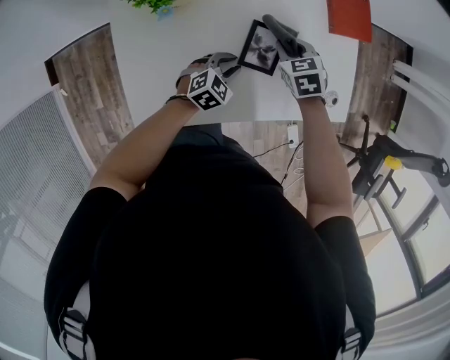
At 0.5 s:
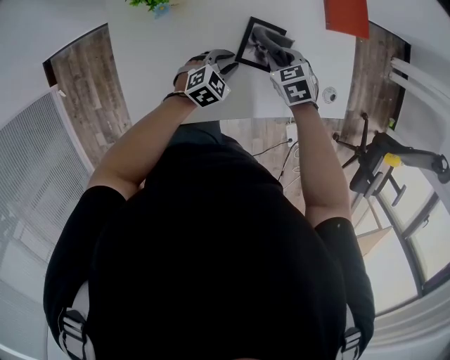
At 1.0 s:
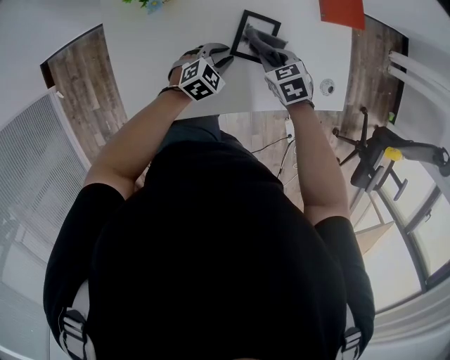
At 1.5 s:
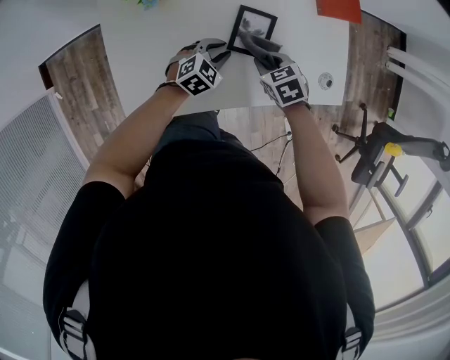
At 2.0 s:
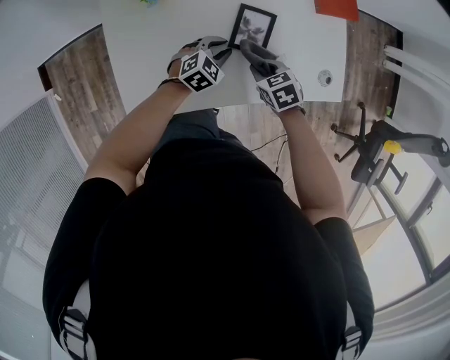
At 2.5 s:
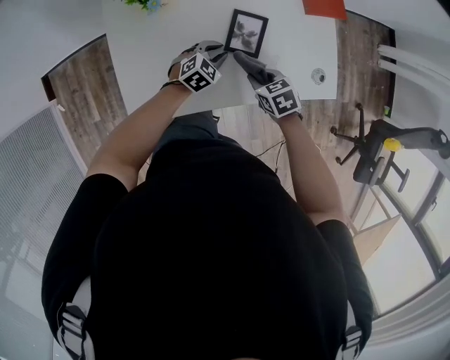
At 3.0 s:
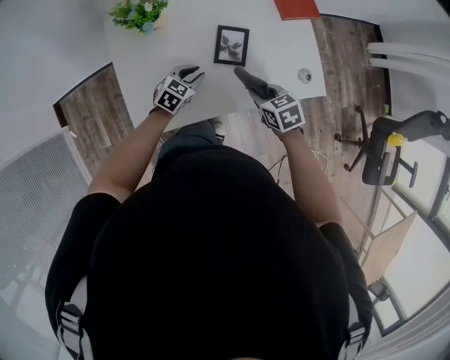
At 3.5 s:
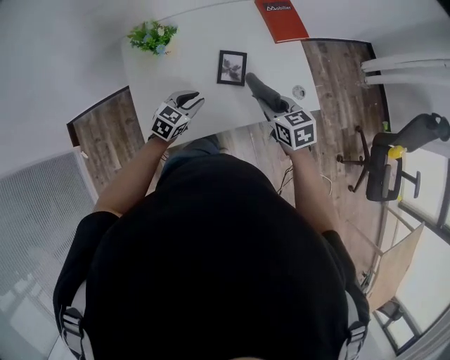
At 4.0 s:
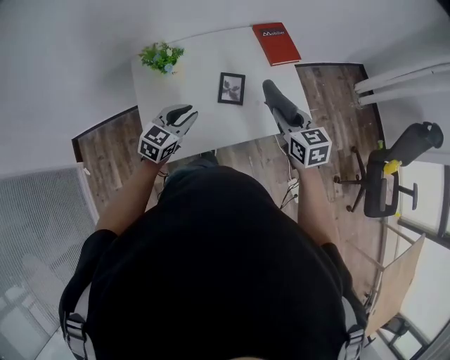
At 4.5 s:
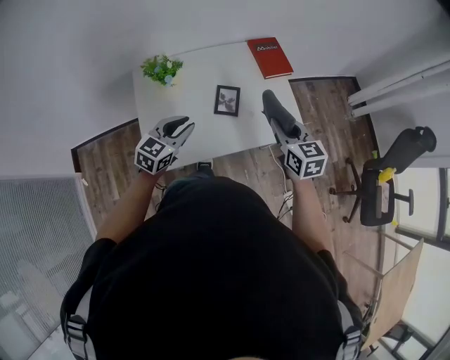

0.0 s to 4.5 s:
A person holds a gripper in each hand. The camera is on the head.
0.0 to 2.0 s: The right gripper travels backward by about 15 cm.
2.0 to 4.5 s: Both grippers move upward, about 30 cm. The left gripper changes its angle by approximately 30 degrees, while the right gripper tips its fingers upward by some 40 degrees.

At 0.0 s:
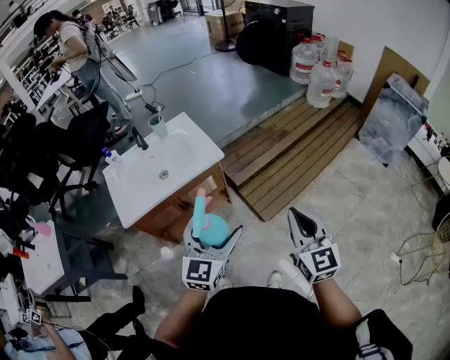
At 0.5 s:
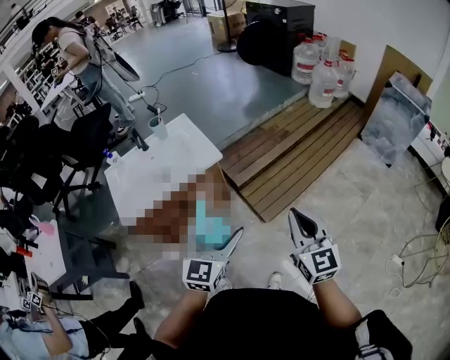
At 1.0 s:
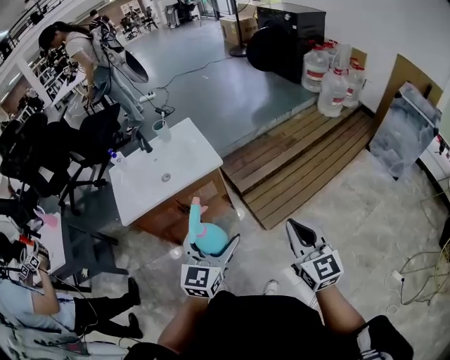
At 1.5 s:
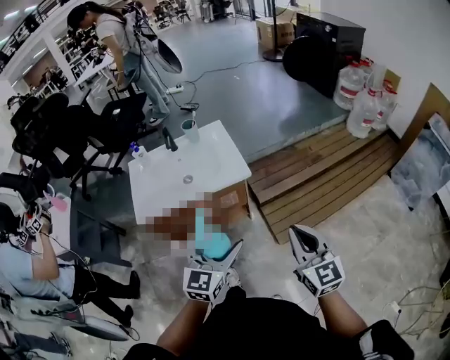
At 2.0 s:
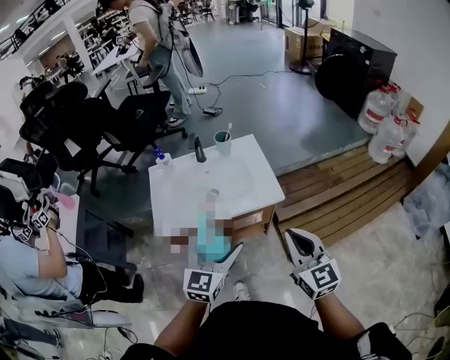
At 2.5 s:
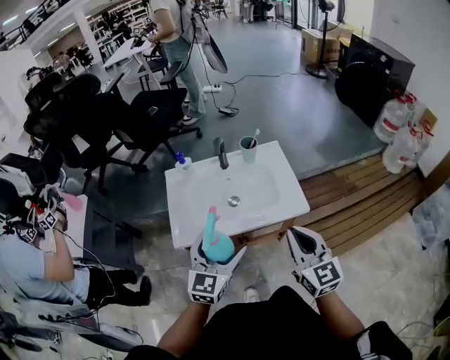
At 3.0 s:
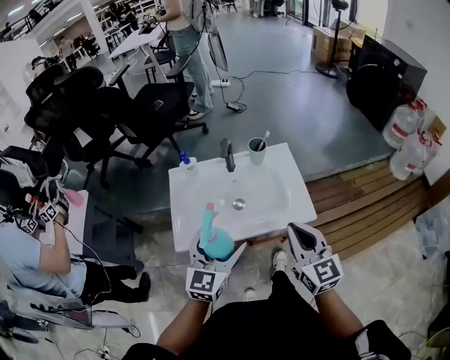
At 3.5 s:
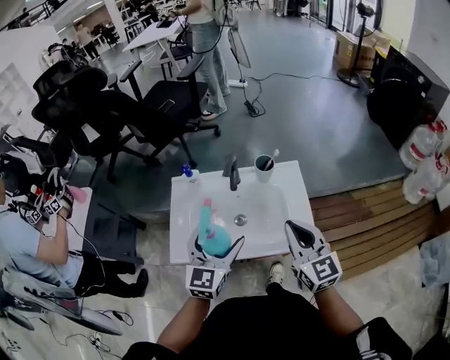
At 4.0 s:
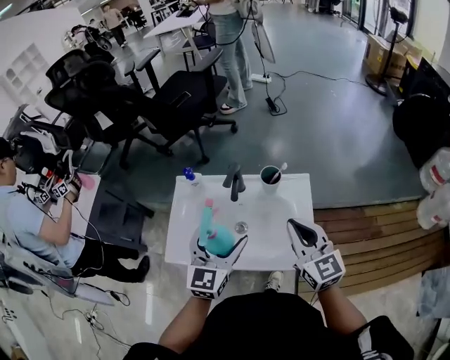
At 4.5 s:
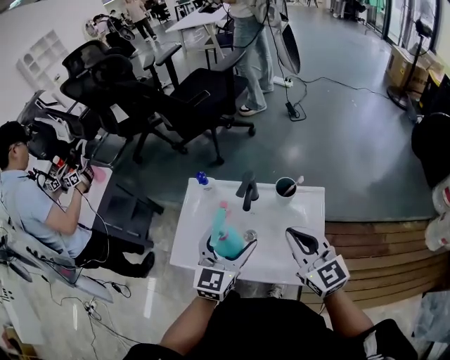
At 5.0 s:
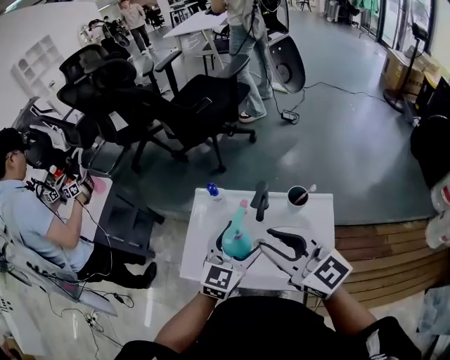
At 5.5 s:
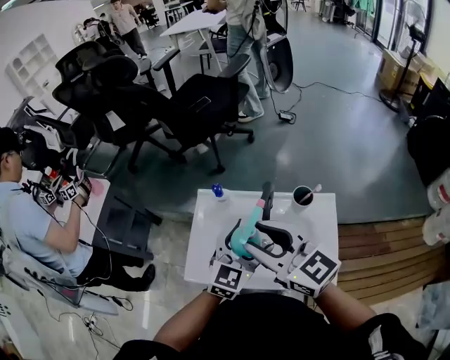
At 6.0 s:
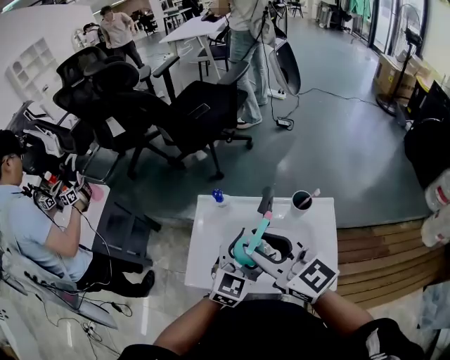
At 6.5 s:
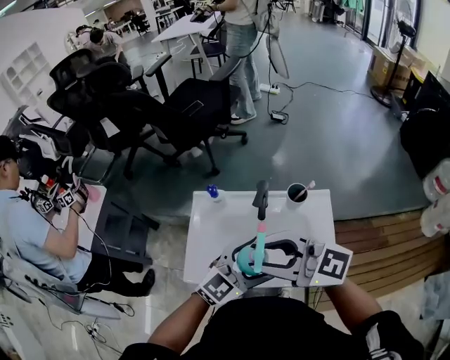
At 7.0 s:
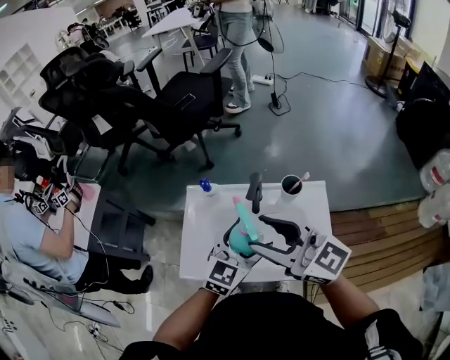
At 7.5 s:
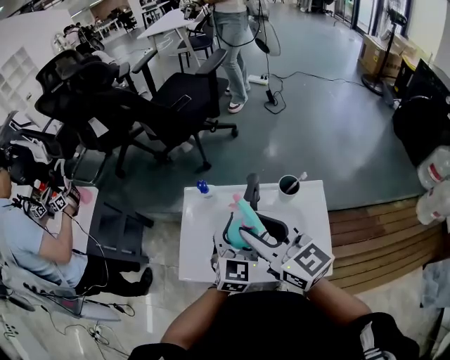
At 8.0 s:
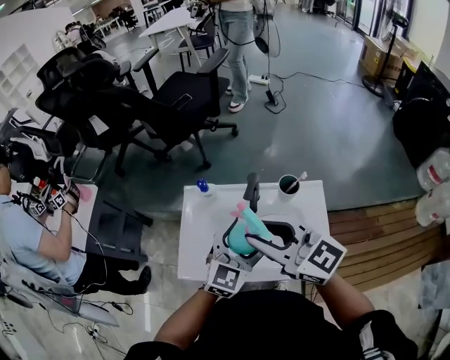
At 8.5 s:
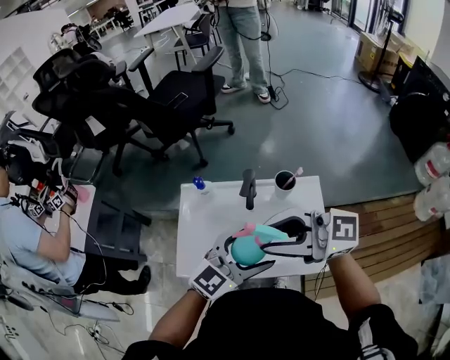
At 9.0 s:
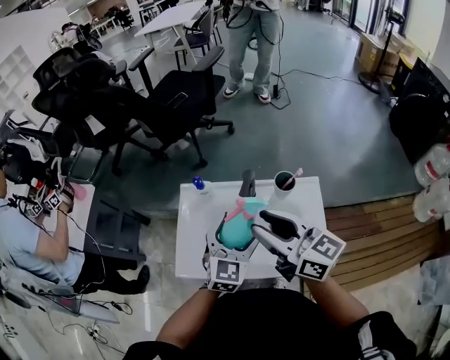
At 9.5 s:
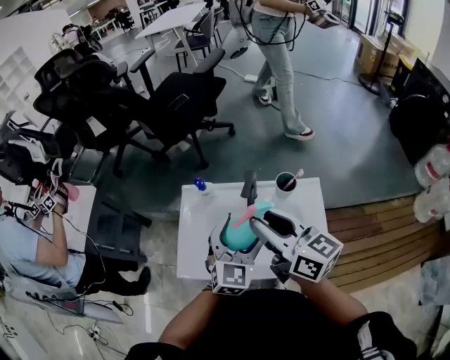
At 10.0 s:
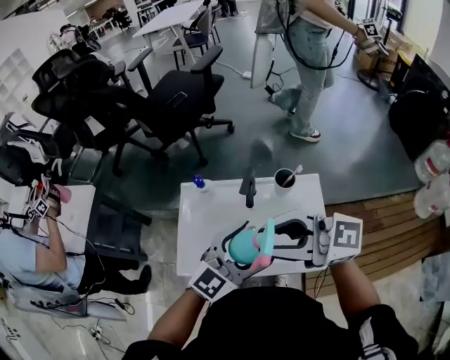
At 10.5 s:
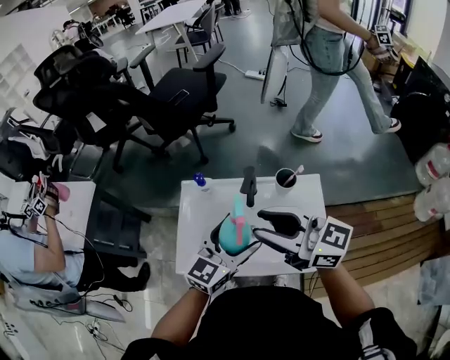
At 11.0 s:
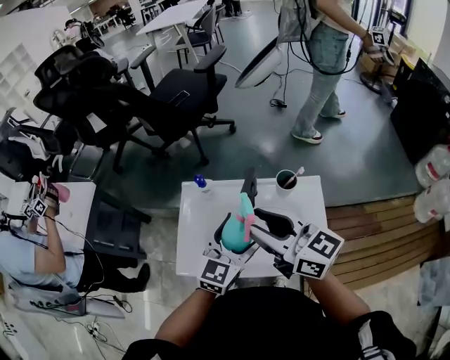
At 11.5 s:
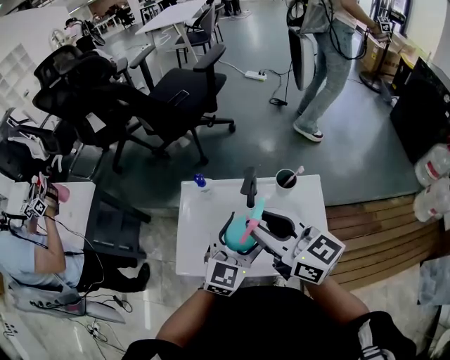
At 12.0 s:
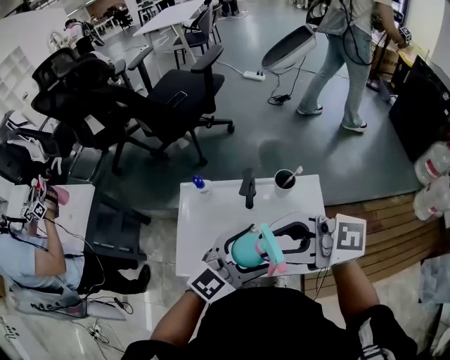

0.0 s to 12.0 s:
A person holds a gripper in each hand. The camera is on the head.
0.0 to 2.0 s: Both grippers travel together to the left and forward, some 20 cm. The right gripper rotates roughly 30 degrees.
2.0 to 4.0 s: The two grippers go approximately 30 cm forward. The left gripper turns by approximately 20 degrees, while the right gripper changes its angle by roughly 20 degrees.
4.0 to 6.0 s: The right gripper travels to the left and upward by roughly 25 cm, swivels approximately 30 degrees, and opens.
8.0 to 10.0 s: The right gripper ends up roughly 5 cm from where it was, and rotates approximately 20 degrees. Meanwhile the left gripper ends up approximately 10 cm from where it was, and rotates approximately 20 degrees.

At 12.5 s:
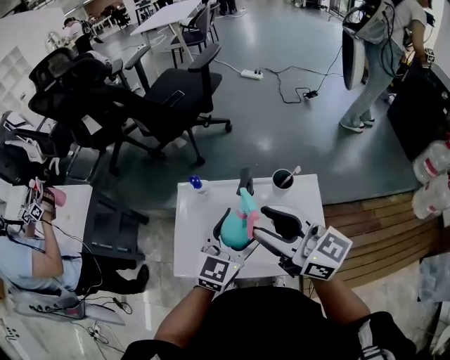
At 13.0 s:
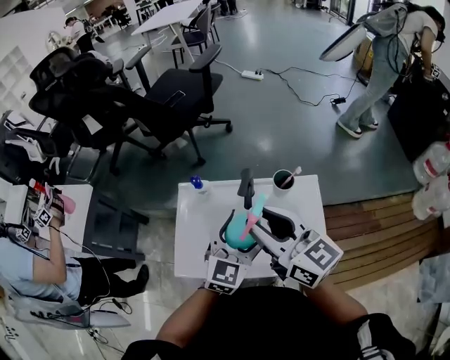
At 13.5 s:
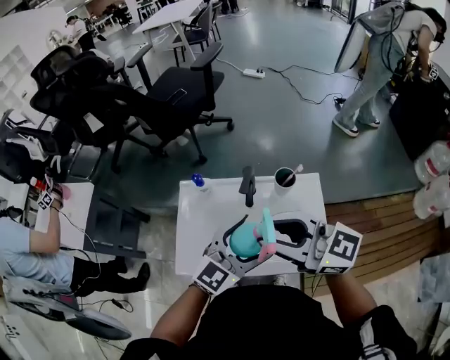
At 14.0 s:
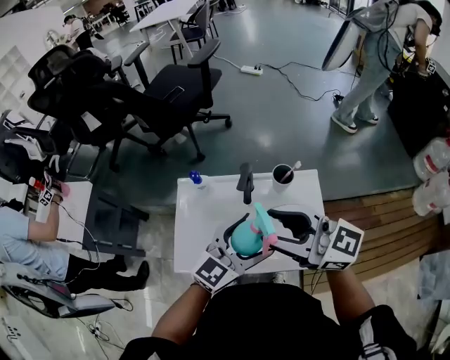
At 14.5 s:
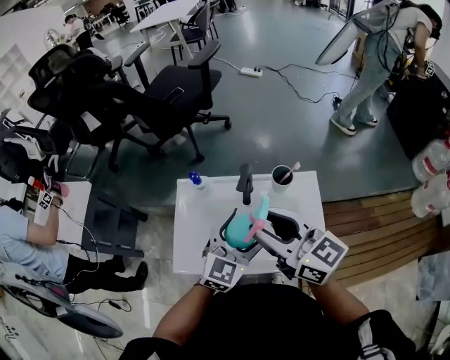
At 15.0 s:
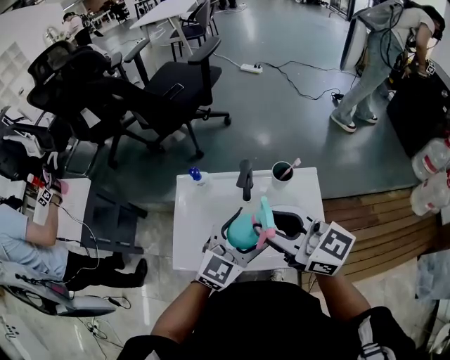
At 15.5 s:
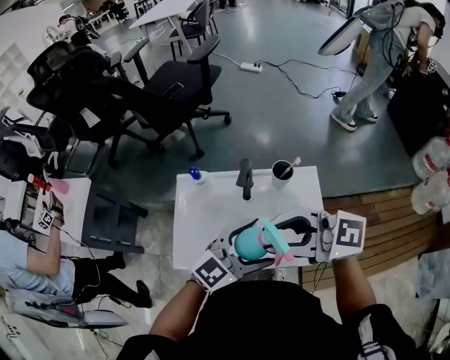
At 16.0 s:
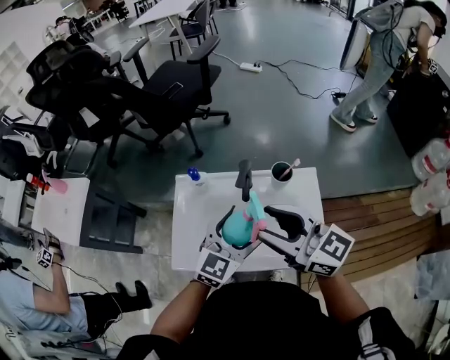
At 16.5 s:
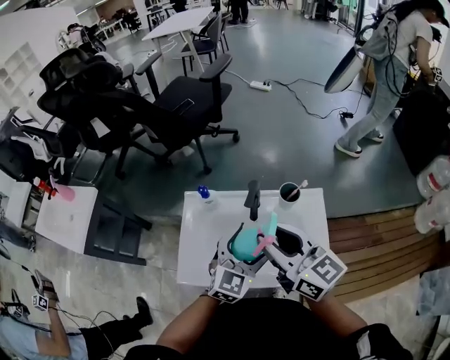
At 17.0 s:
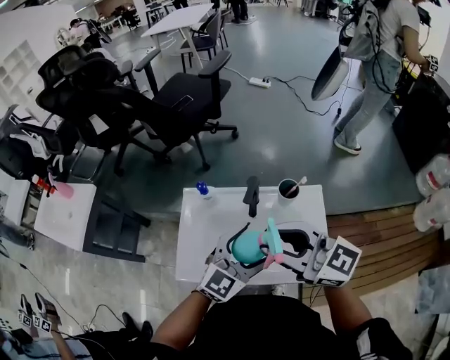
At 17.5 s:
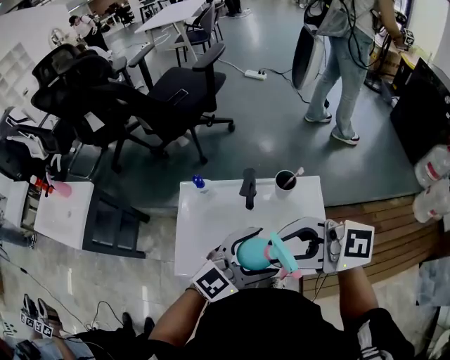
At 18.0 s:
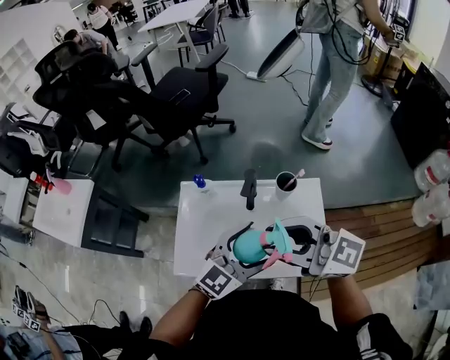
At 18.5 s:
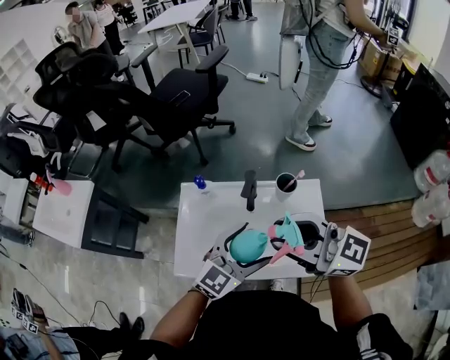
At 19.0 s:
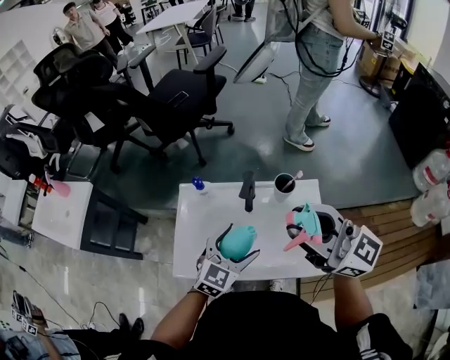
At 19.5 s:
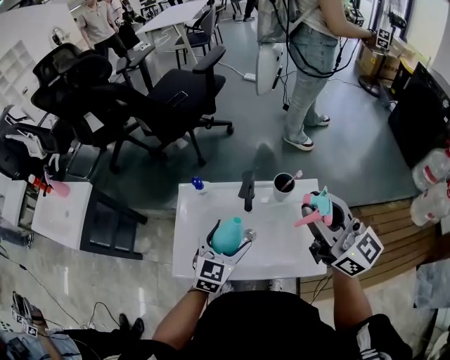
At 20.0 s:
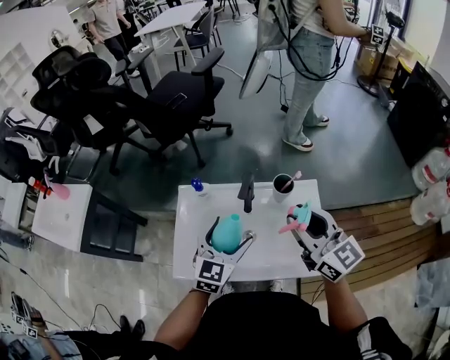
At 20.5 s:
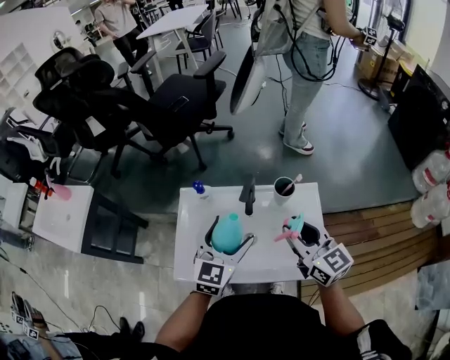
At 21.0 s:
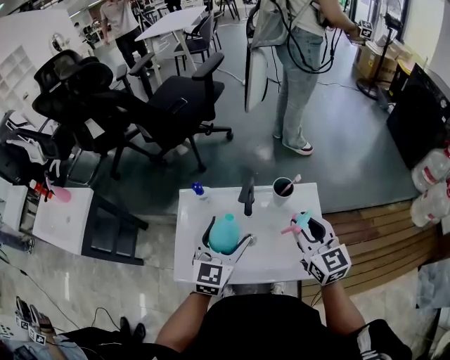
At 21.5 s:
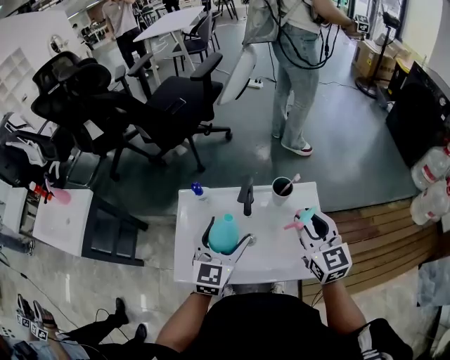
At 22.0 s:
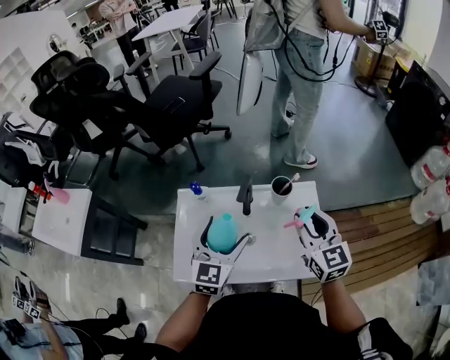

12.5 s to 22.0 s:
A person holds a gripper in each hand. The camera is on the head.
16.5 to 18.0 s: The right gripper changes its angle by about 30 degrees. The left gripper changes its angle by roughly 20 degrees.
18.0 to 20.0 s: The left gripper is displaced to the left, forward and downward by roughly 10 cm, and turns by approximately 30 degrees. The right gripper is displaced to the right and forward by approximately 10 cm, and turns by roughly 40 degrees.
20.0 to 22.0 s: The right gripper shifts approximately 5 cm downward, and rotates roughly 20 degrees.

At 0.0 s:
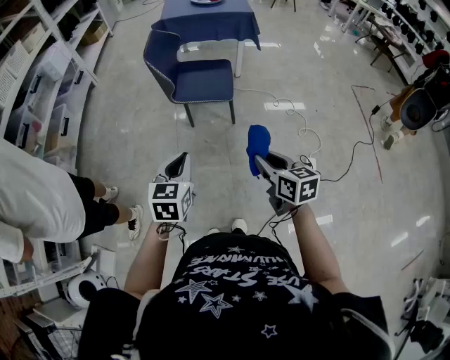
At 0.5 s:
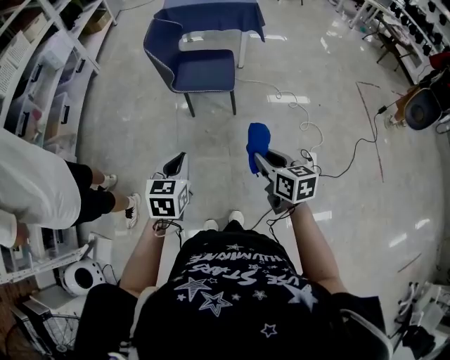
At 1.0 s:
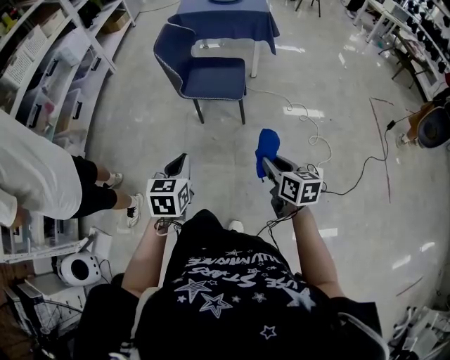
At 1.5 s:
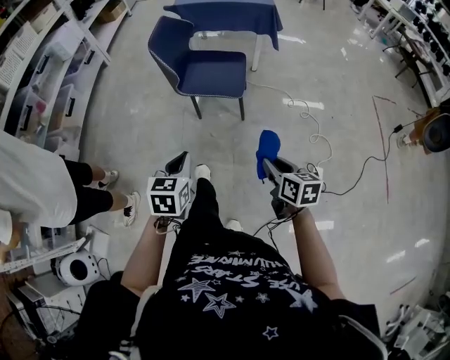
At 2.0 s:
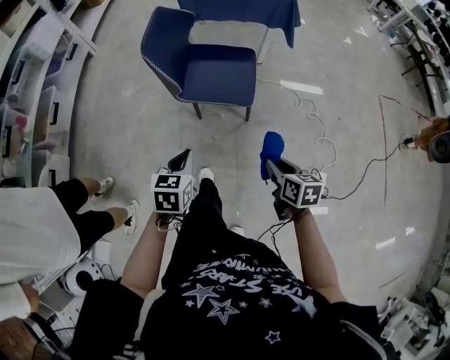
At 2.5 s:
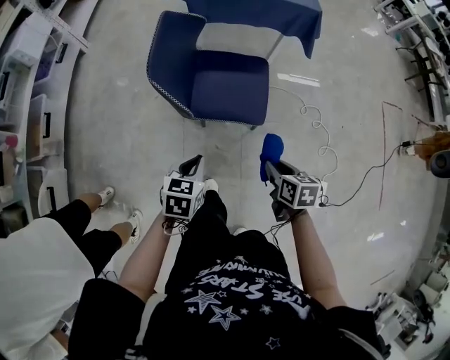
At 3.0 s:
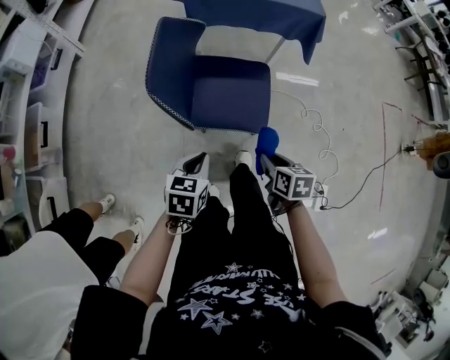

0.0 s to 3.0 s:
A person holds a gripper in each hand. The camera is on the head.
0.0 to 1.5 s: The right gripper goes some 10 cm to the right, downward and forward. Meanwhile the left gripper shifts approximately 5 cm forward and downward.
1.5 to 3.0 s: The two grippers go approximately 35 cm forward.
